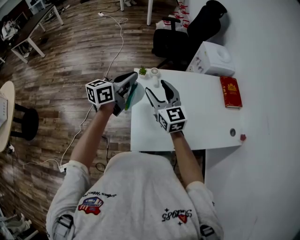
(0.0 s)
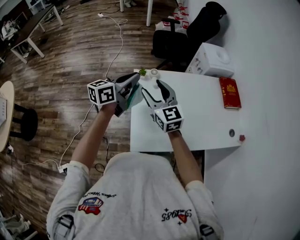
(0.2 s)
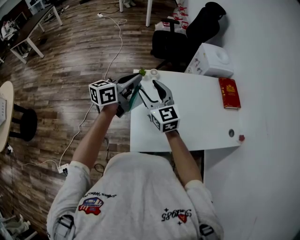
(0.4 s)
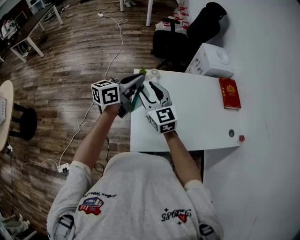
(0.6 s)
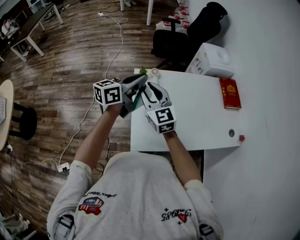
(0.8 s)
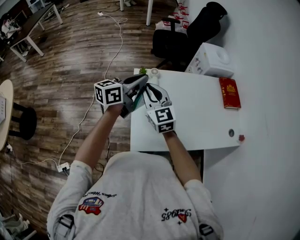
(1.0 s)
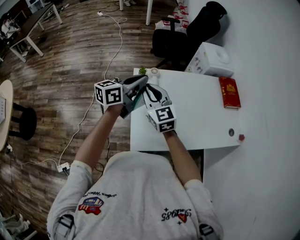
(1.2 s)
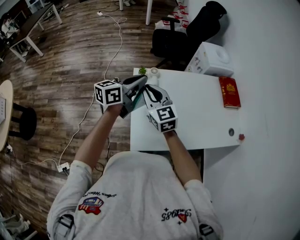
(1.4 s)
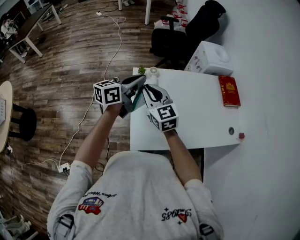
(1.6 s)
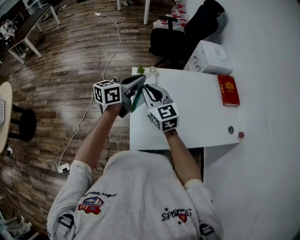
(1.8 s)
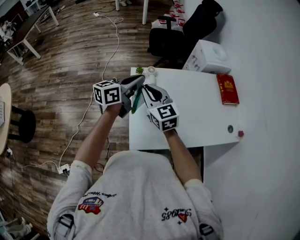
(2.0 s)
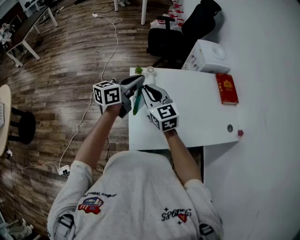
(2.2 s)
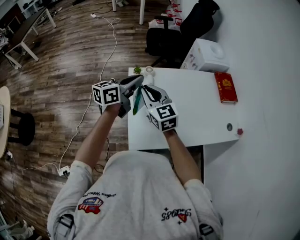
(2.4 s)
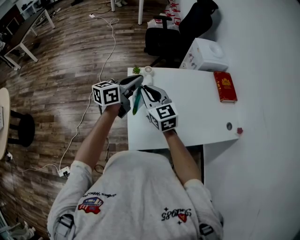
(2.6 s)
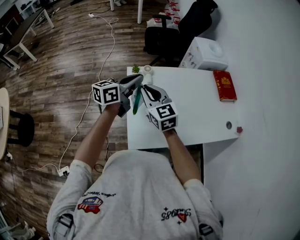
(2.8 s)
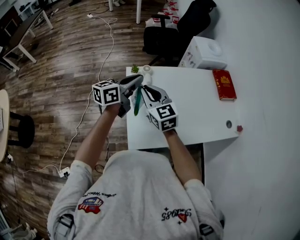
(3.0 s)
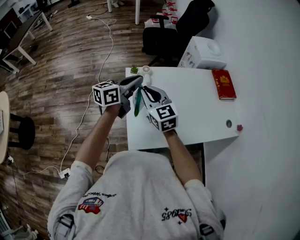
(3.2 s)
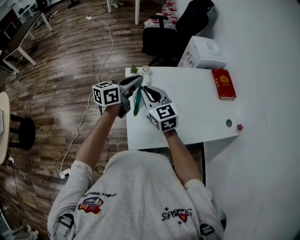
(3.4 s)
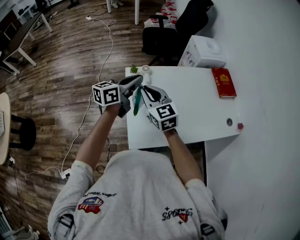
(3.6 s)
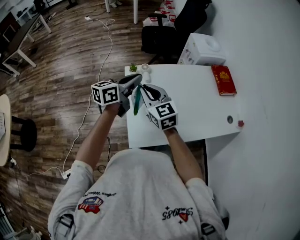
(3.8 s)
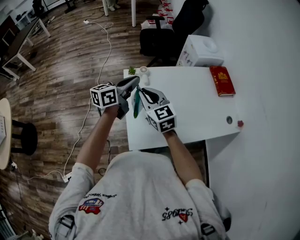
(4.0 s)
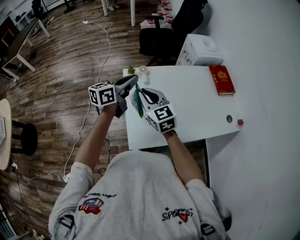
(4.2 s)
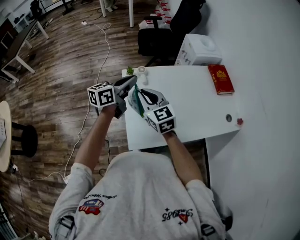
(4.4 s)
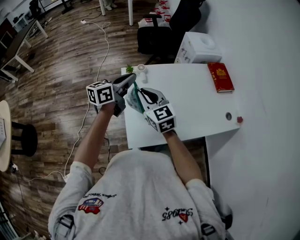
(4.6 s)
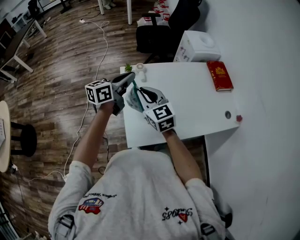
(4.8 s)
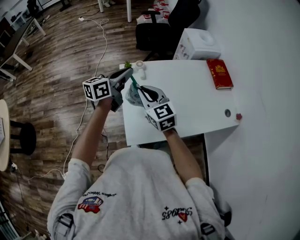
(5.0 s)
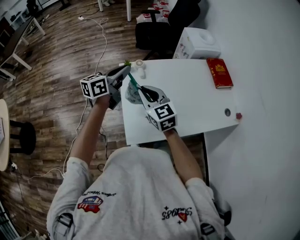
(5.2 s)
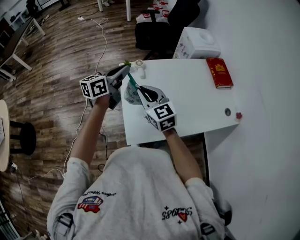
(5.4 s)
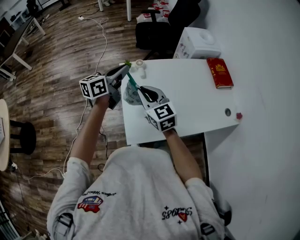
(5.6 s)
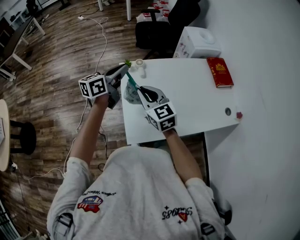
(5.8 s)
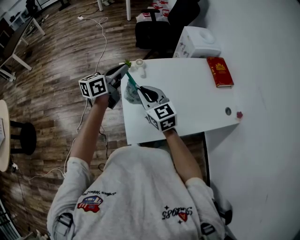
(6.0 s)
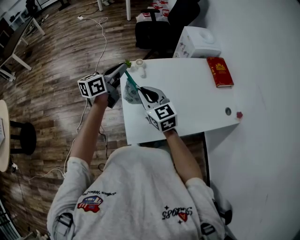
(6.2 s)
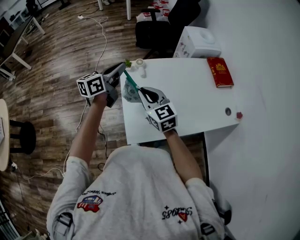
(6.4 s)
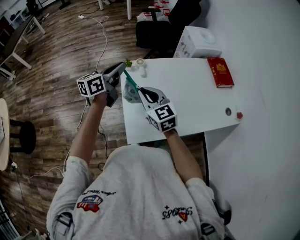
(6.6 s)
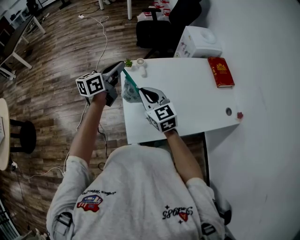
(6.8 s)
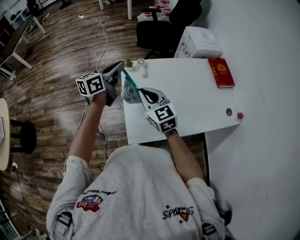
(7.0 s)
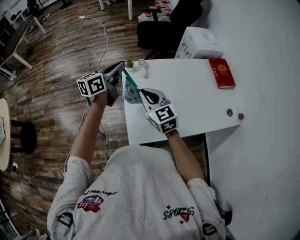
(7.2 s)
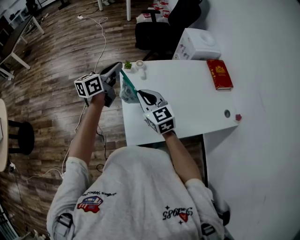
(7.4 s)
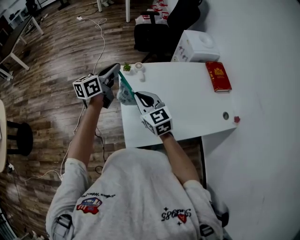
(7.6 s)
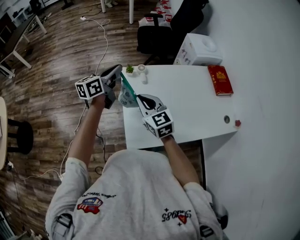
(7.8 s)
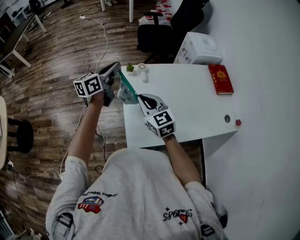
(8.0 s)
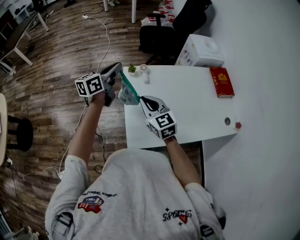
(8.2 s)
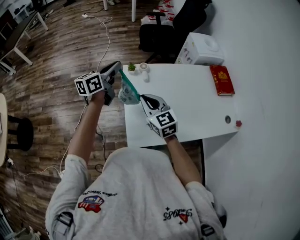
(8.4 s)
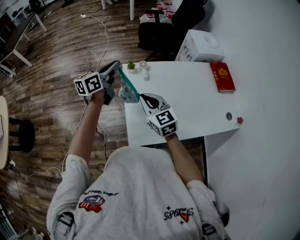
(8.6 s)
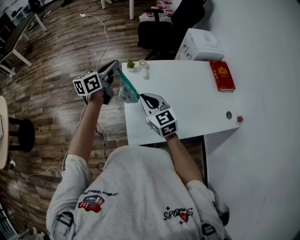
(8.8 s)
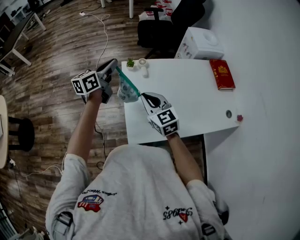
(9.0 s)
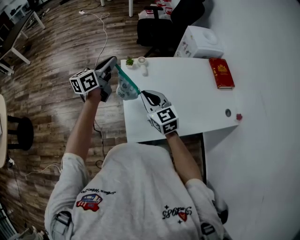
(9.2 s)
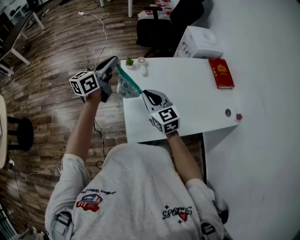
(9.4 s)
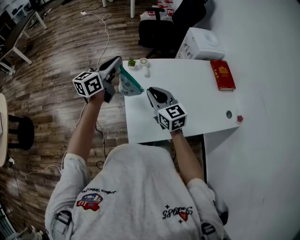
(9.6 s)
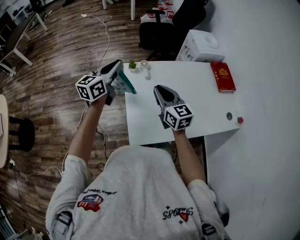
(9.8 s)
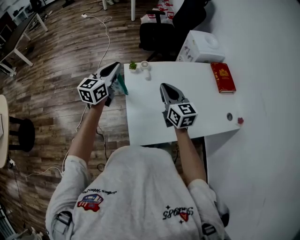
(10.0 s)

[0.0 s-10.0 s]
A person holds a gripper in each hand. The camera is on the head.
0.0 to 1.4 s: The right gripper closes up.
1.4 to 4.2 s: The grippers stay close to where they were, moving slightly.
4.2 to 7.2 s: The grippers stay close to where they were, moving slightly.
7.2 to 8.6 s: The left gripper moves some 5 cm.
8.6 to 10.0 s: The right gripper heads to the right, covering approximately 10 cm, while the left gripper turns by some 20 degrees.

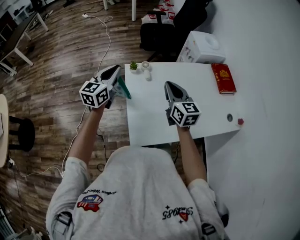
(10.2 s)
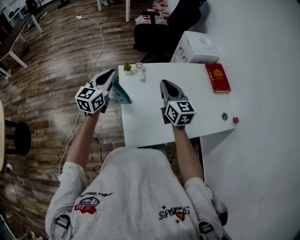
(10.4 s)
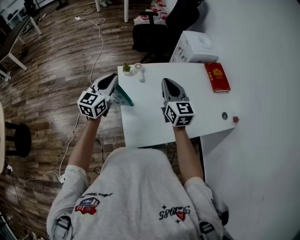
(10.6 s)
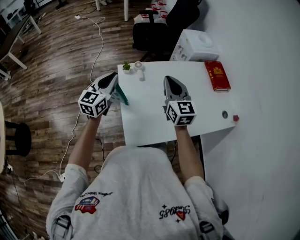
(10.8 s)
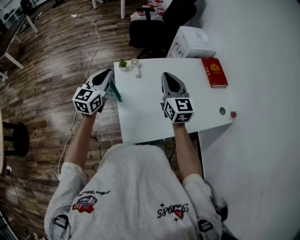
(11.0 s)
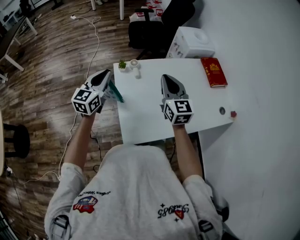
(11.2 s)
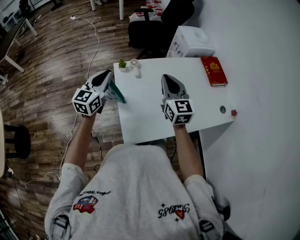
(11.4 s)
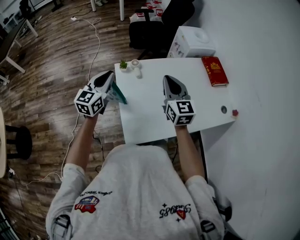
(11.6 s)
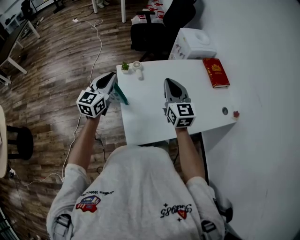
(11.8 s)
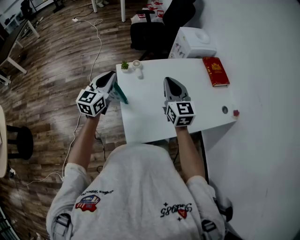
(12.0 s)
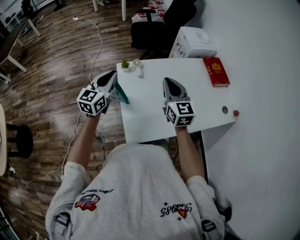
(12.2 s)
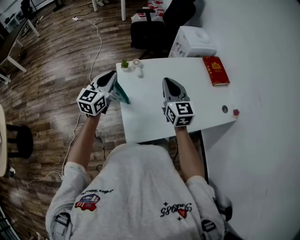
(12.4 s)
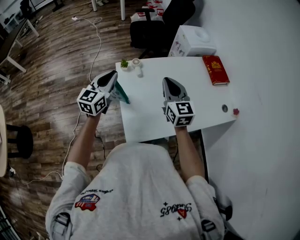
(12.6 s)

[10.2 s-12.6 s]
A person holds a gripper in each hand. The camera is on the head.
10.2 to 12.6 s: There are only small adjustments of the grippers.

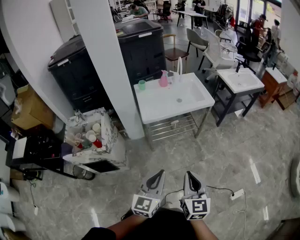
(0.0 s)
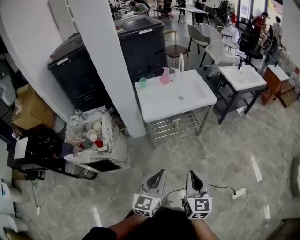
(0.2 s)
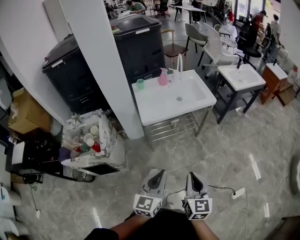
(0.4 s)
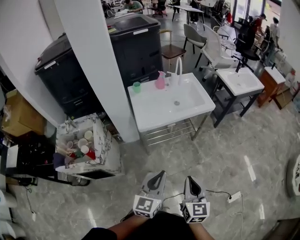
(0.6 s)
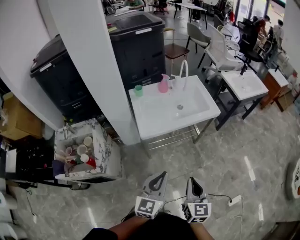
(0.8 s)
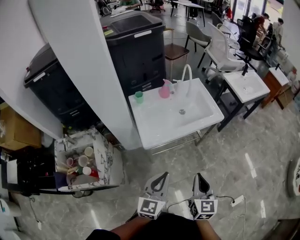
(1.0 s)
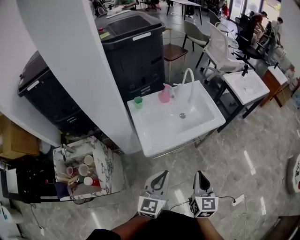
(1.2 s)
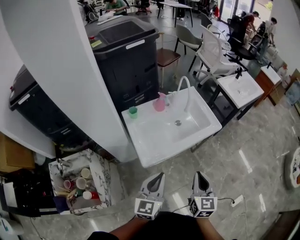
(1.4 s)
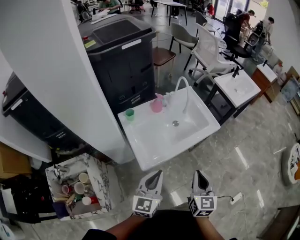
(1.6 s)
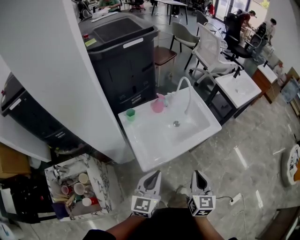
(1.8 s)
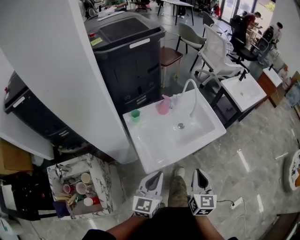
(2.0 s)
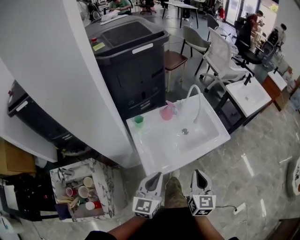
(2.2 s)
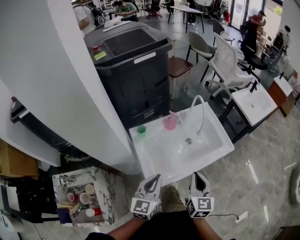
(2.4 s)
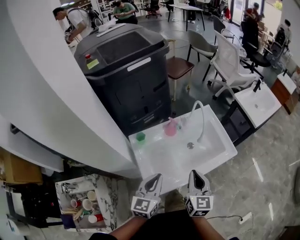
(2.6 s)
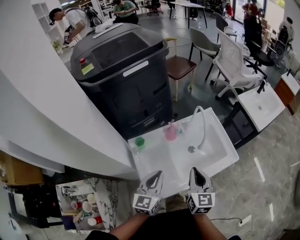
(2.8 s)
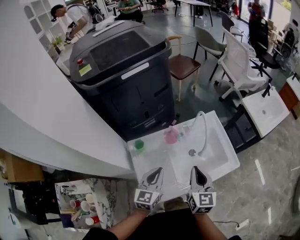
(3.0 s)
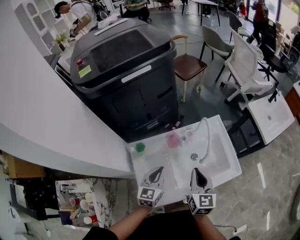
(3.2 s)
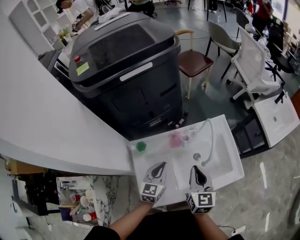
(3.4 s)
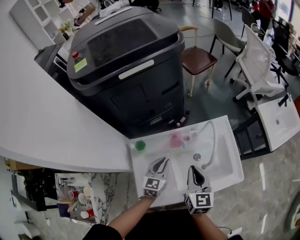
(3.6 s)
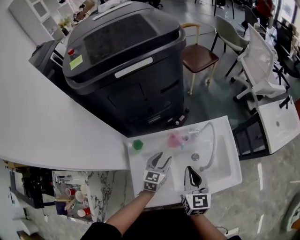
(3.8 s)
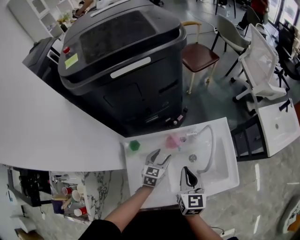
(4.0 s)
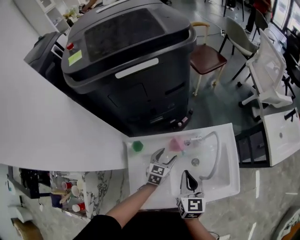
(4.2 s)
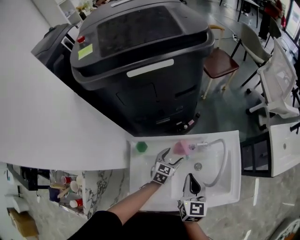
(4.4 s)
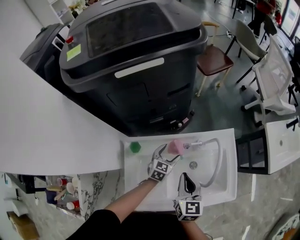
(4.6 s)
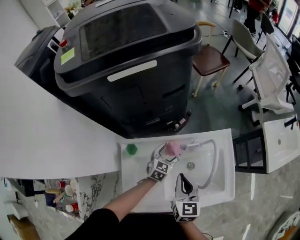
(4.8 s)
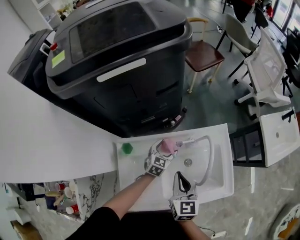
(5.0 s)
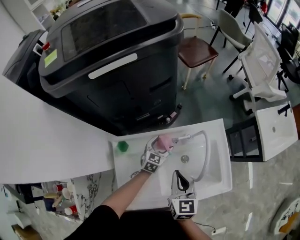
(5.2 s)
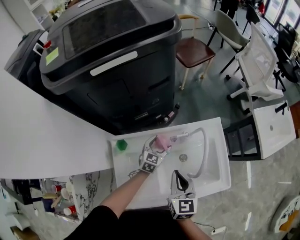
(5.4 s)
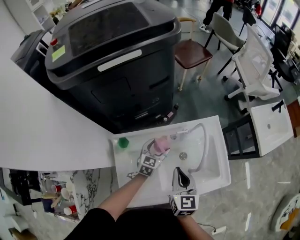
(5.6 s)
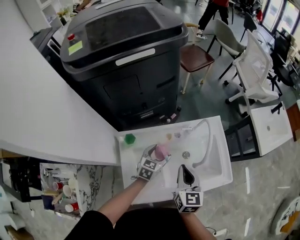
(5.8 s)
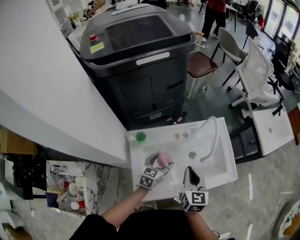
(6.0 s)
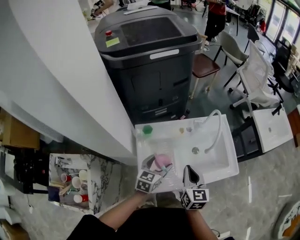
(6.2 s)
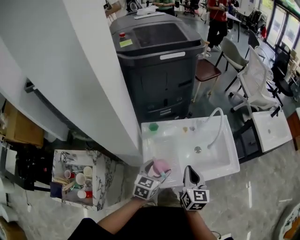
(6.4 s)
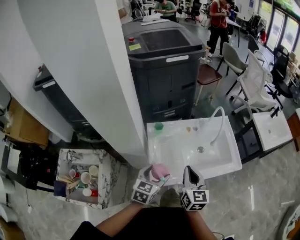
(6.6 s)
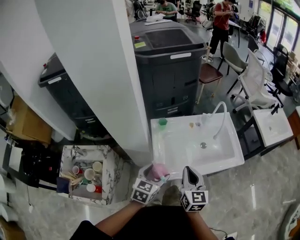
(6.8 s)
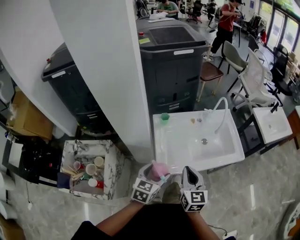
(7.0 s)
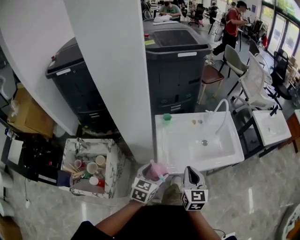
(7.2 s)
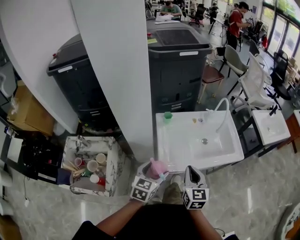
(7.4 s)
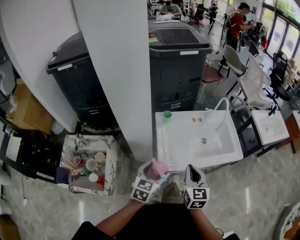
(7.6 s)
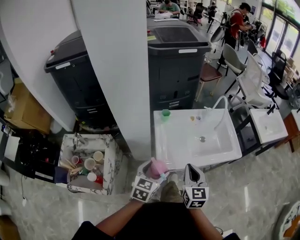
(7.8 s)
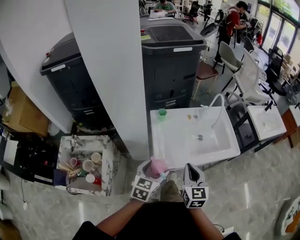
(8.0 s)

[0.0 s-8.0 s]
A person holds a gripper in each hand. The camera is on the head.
0.0 to 1.6 s: Both grippers are carried forward, approximately 50 cm.
1.6 to 3.2 s: Both grippers move forward, some 35 cm.
3.2 to 4.8 s: The left gripper moves forward and downward, some 25 cm, and opens; the right gripper goes approximately 15 cm forward and downward.
4.8 to 6.4 s: The left gripper is displaced backward and upward by roughly 40 cm. Meanwhile the right gripper is displaced backward by roughly 20 cm.
6.4 to 8.0 s: Both grippers travel together backward, roughly 15 cm.

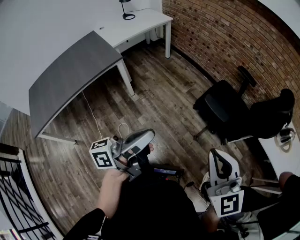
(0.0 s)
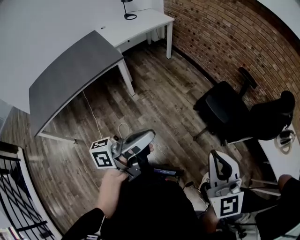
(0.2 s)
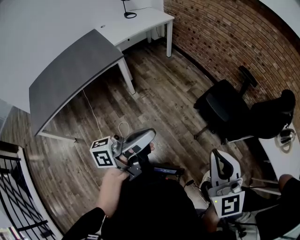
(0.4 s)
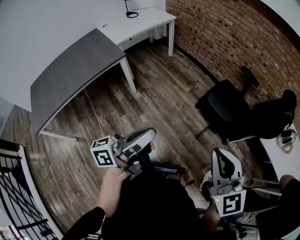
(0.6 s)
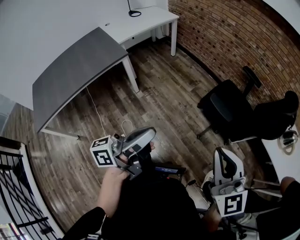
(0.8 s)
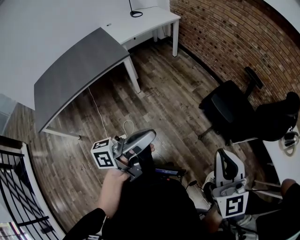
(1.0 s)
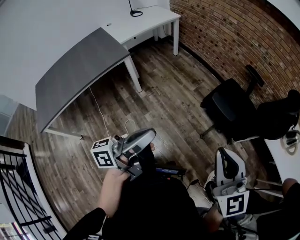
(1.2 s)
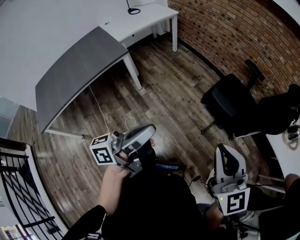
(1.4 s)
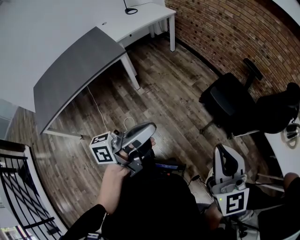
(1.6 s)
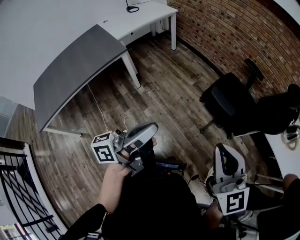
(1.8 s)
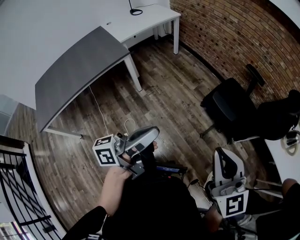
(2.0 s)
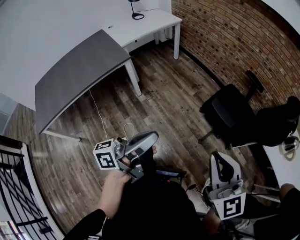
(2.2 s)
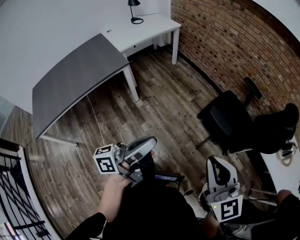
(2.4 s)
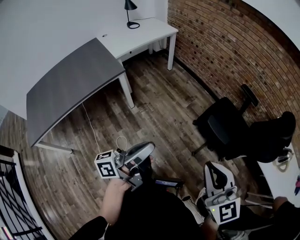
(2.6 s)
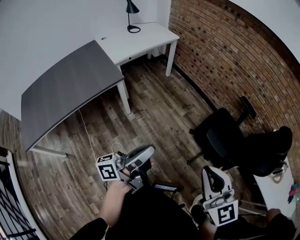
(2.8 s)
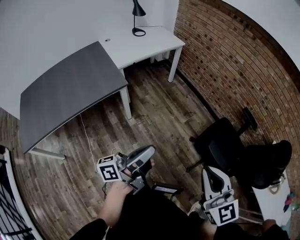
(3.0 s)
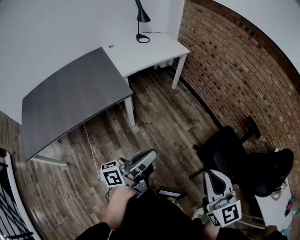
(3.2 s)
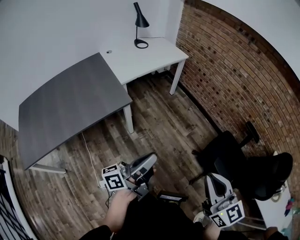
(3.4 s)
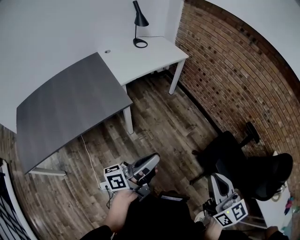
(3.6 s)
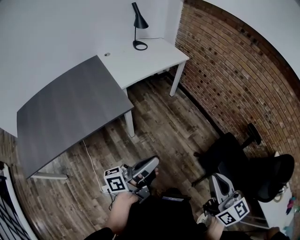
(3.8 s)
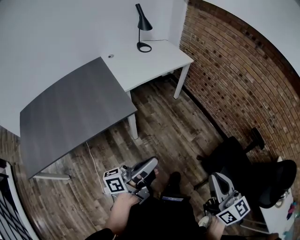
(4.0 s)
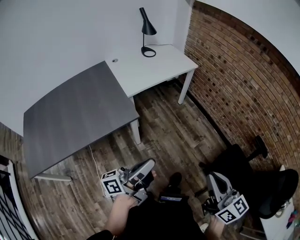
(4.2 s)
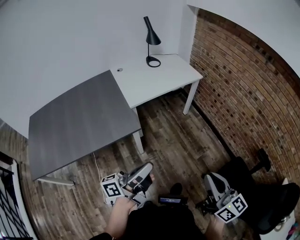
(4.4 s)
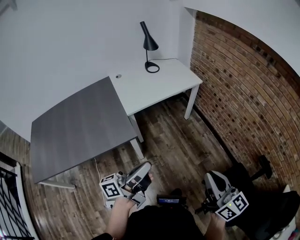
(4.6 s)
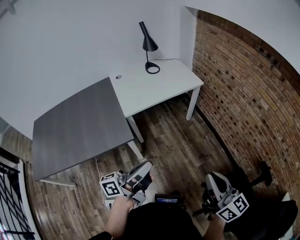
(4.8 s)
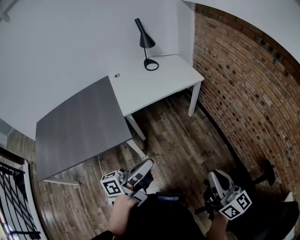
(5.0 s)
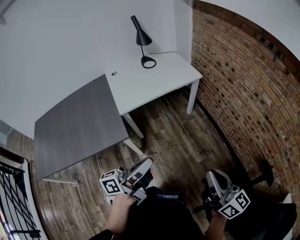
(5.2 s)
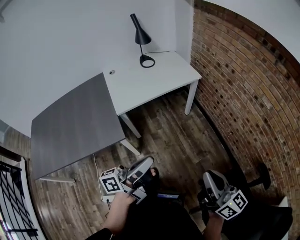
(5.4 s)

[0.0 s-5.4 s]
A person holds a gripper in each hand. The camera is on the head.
1.4 to 2.8 s: The right gripper moves some 15 cm.
2.8 to 4.0 s: The right gripper ends up roughly 20 cm from where it was, and rotates approximately 30 degrees.
4.0 to 5.4 s: The right gripper shifts by approximately 30 cm, and changes its angle by approximately 20 degrees.
